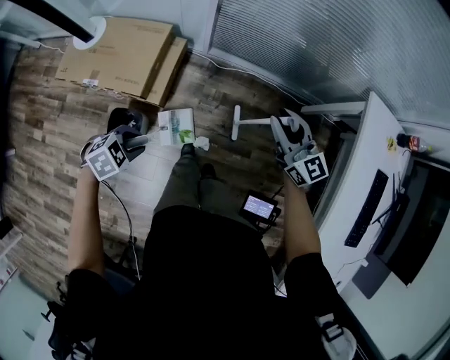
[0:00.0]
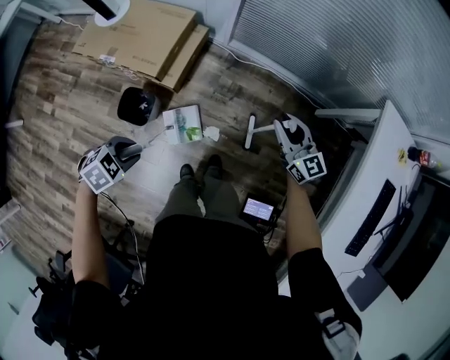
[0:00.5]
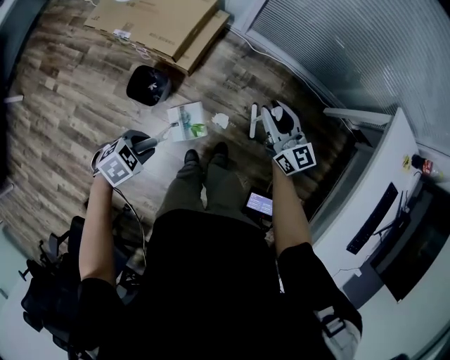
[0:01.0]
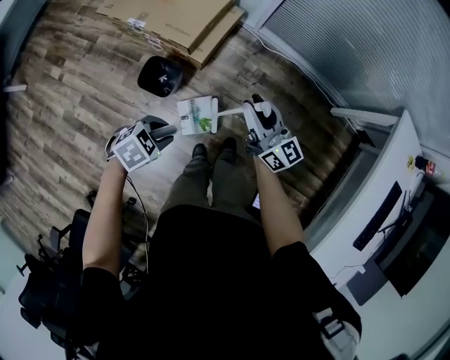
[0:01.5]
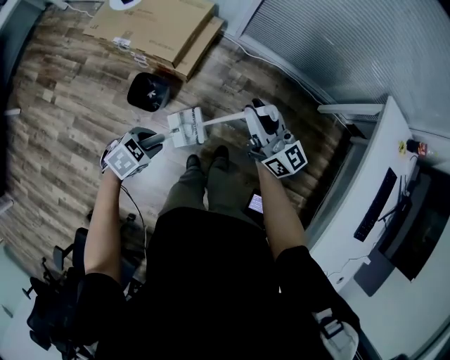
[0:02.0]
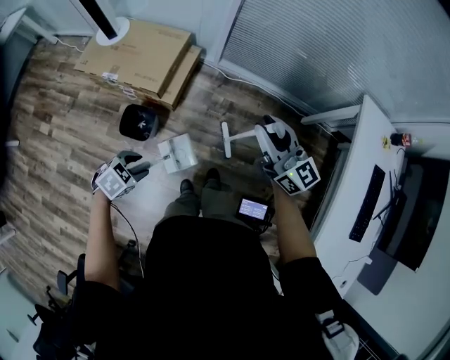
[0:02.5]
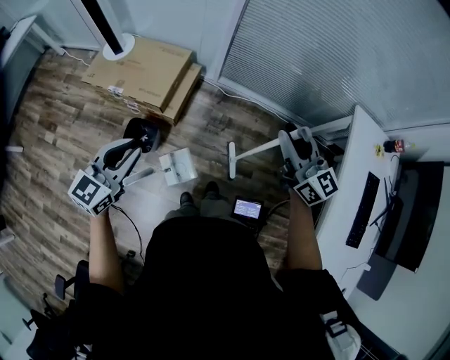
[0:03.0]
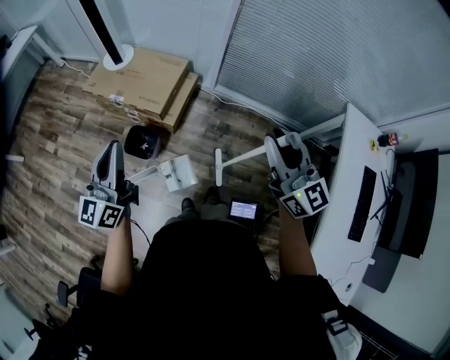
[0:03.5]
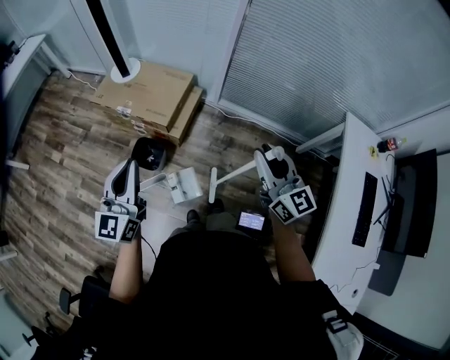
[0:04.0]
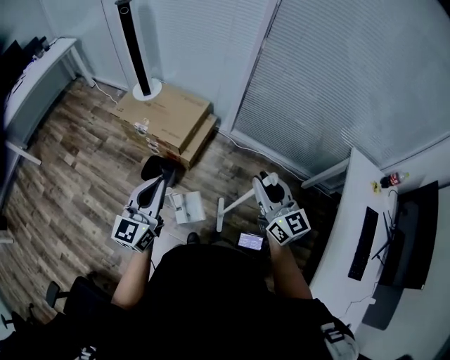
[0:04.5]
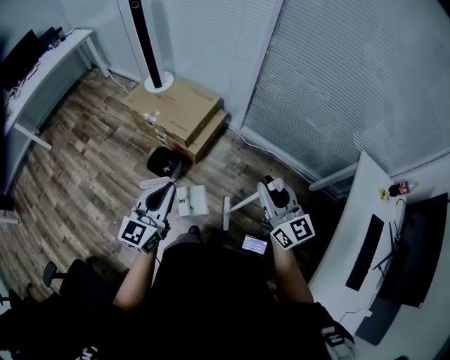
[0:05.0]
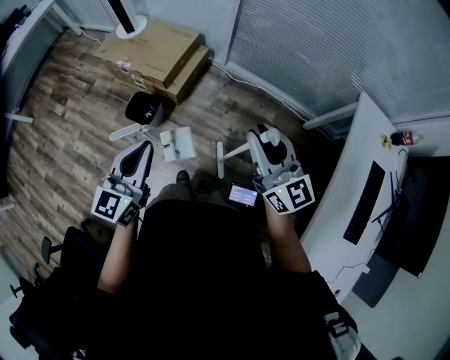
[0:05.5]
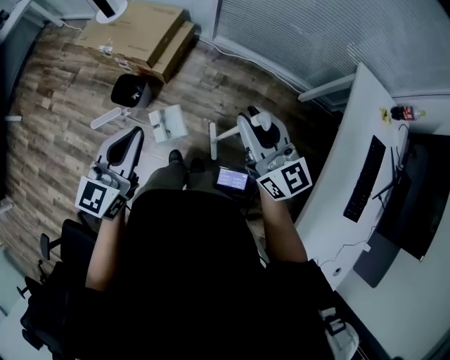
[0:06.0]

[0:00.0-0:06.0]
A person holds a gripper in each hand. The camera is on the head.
0:00.0 to 0:02.0: The left gripper heads backward, covering roughly 20 cm, and changes its angle by some 20 degrees, while the right gripper is displaced backward and to the left by some 25 cm, and rotates roughly 20 degrees.
0:02.0 to 0:04.0: The right gripper shifts some 15 cm upward, and changes its angle by some 20 degrees. Meanwhile the left gripper goes about 35 cm upward, angles its fingers upward, by roughly 70 degrees, and closes.
0:04.0 to 0:06.0: The left gripper travels to the right and backward by some 20 cm, and rotates roughly 20 degrees, while the right gripper moves to the right, backward and downward, some 10 cm.

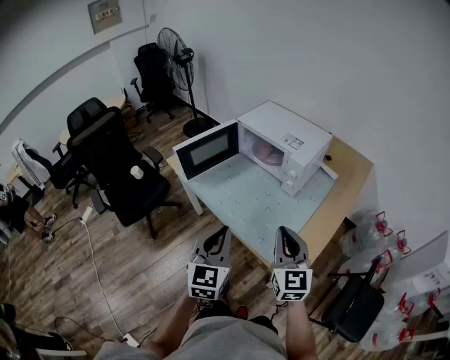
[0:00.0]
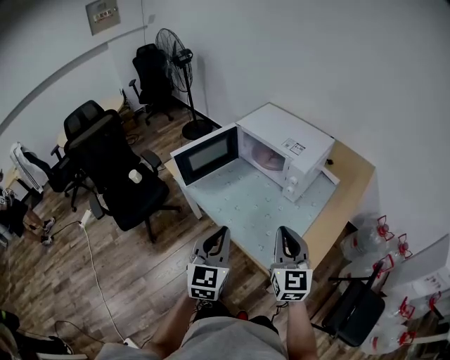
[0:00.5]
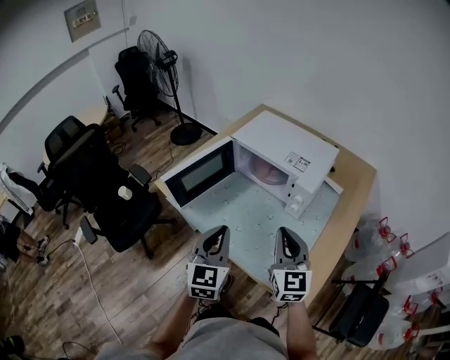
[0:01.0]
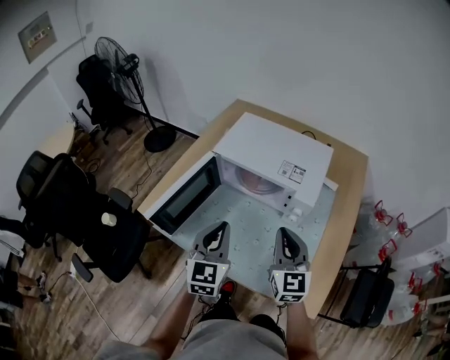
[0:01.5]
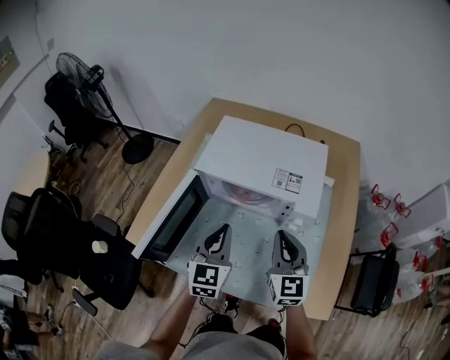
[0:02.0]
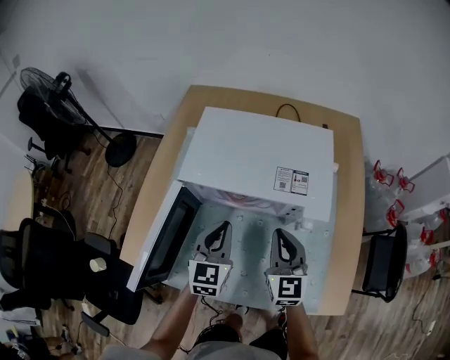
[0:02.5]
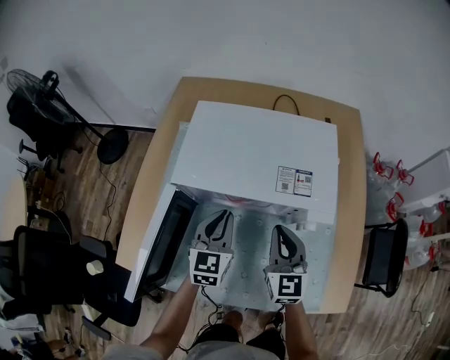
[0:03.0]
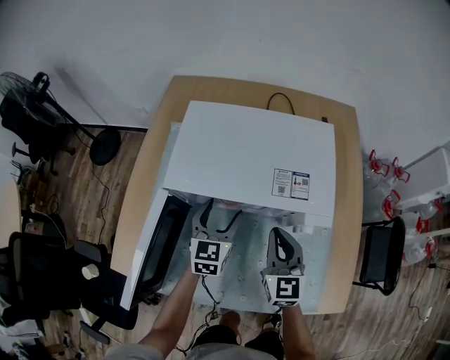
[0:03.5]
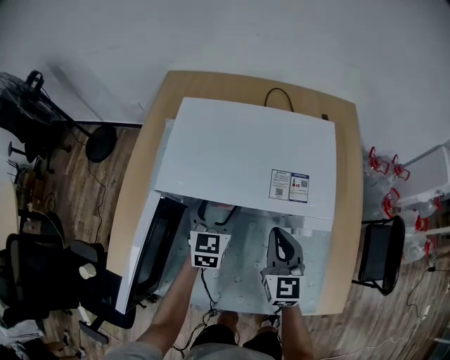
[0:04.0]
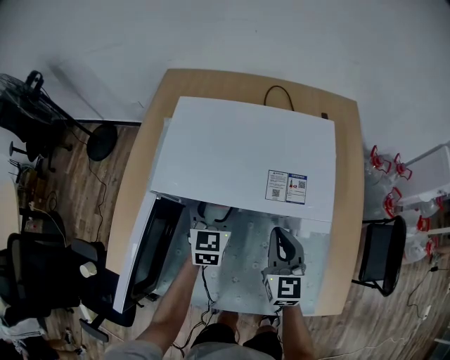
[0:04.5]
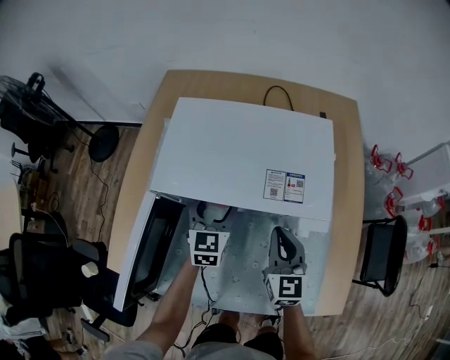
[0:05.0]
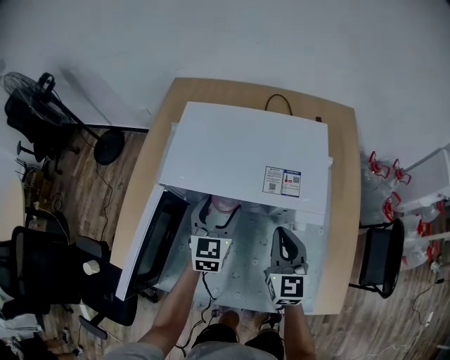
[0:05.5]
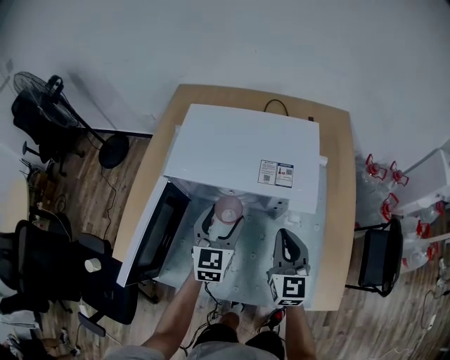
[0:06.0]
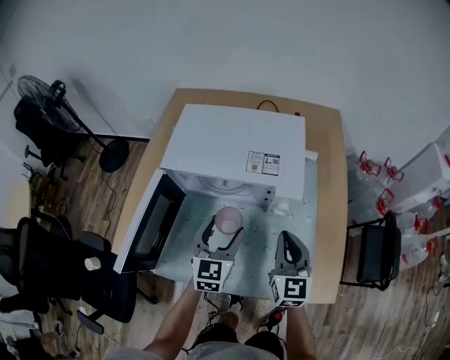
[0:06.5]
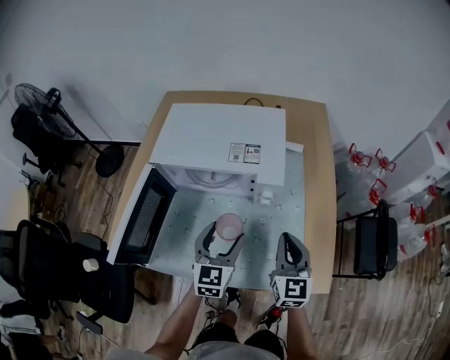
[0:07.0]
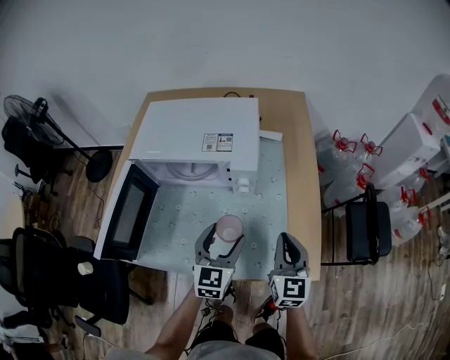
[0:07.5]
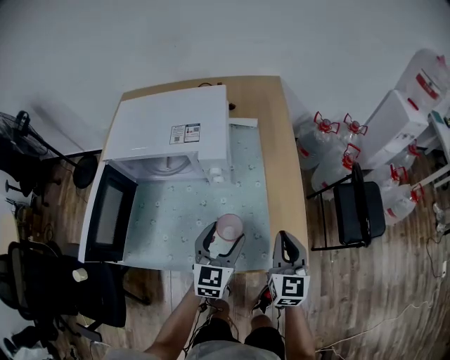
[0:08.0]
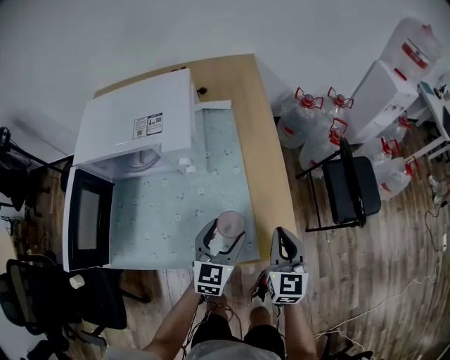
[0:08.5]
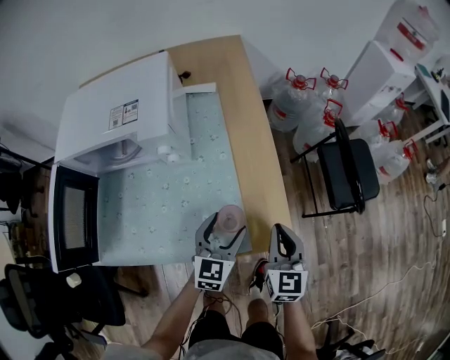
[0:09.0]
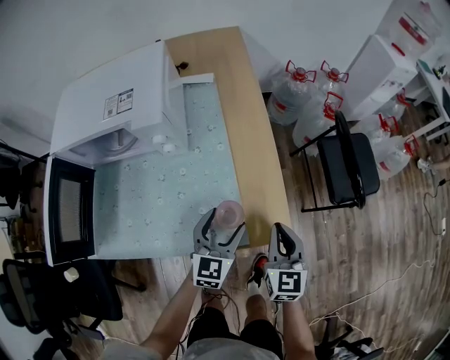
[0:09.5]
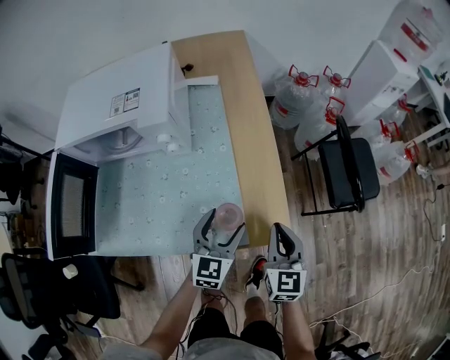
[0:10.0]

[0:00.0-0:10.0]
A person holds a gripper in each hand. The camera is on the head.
0:00.0 to 0:02.0: The right gripper shifts by some 30 cm, and changes its angle by approximately 30 degrees. The left gripper shifts by approximately 40 cm, and turns by some 30 degrees.
0:02.0 to 0:04.0: The right gripper travels downward and forward by some 15 cm; the left gripper goes about 25 cm forward and downward, and opens.
0:04.0 to 0:06.0: The left gripper heads backward and upward, covering roughly 10 cm, while the right gripper shifts by roughly 10 cm.
0:06.0 to 0:08.0: The two grippers go roughly 25 cm to the right and backward.
0:08.0 to 0:10.0: The grippers both shift to the right and downward by about 15 cm.

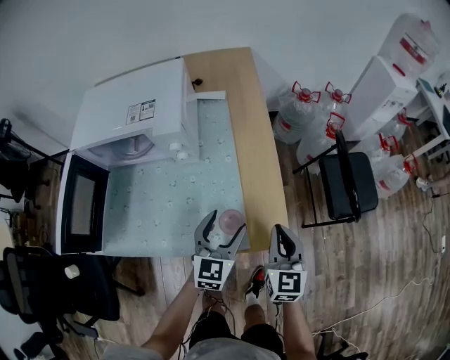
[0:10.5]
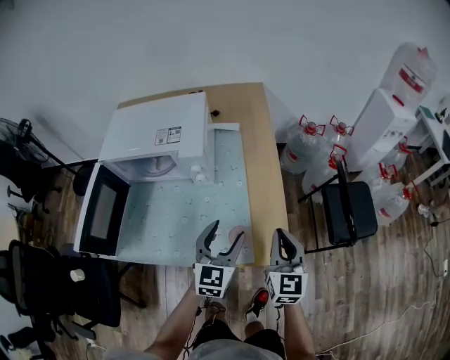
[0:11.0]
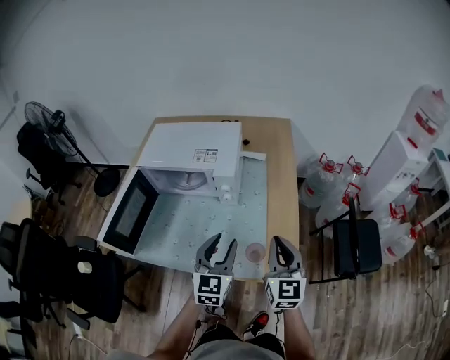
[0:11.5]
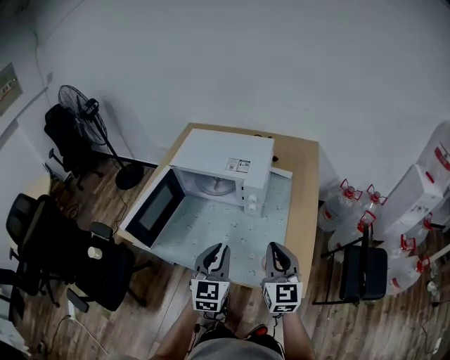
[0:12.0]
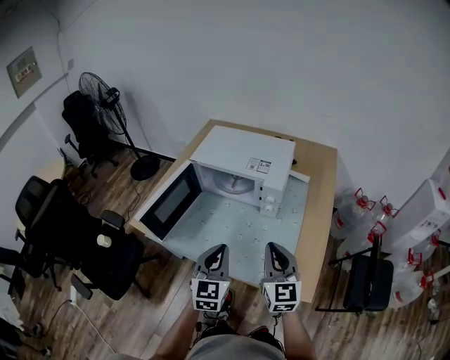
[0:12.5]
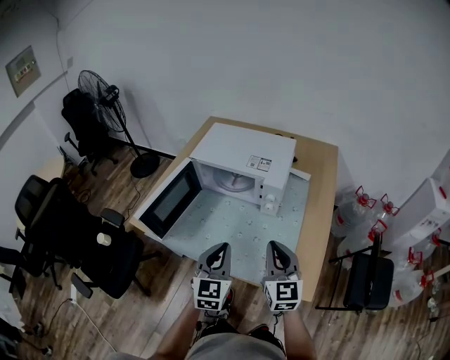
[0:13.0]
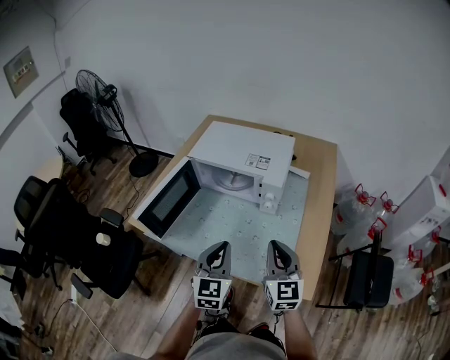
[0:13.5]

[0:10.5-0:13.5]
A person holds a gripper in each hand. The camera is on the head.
0:10.5 to 0:12.0: The right gripper moves upward, roughly 15 cm, and rotates about 30 degrees. Meanwhile the left gripper changes place by roughly 25 cm, turns by about 30 degrees, and closes.
0:12.0 to 0:13.5: The grippers make only small movements.

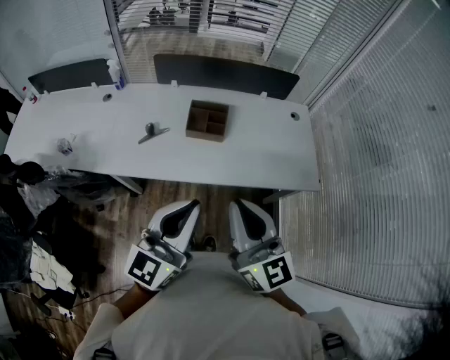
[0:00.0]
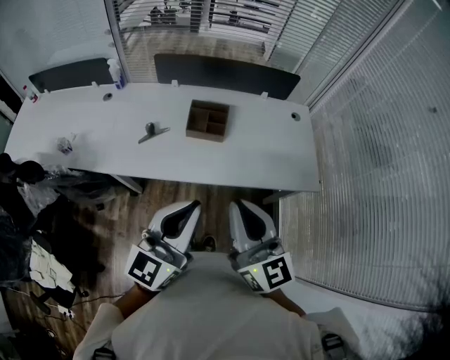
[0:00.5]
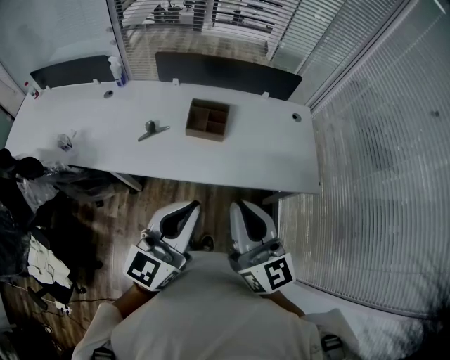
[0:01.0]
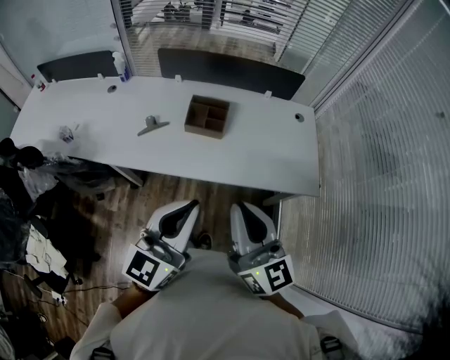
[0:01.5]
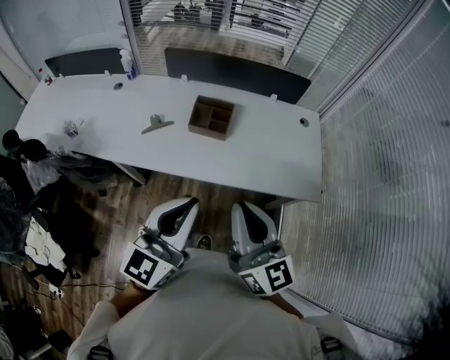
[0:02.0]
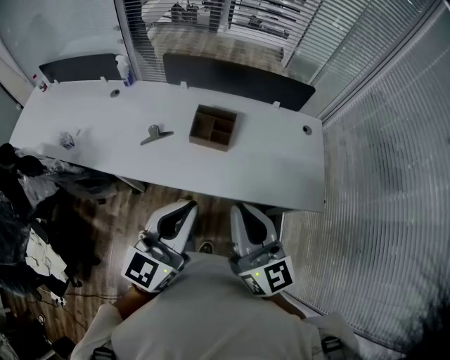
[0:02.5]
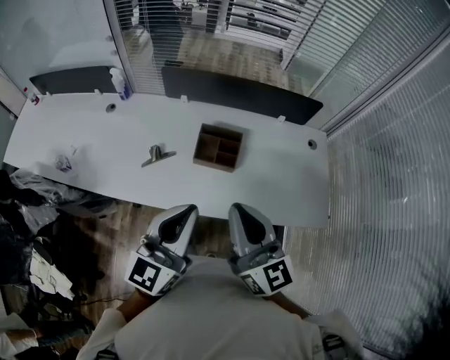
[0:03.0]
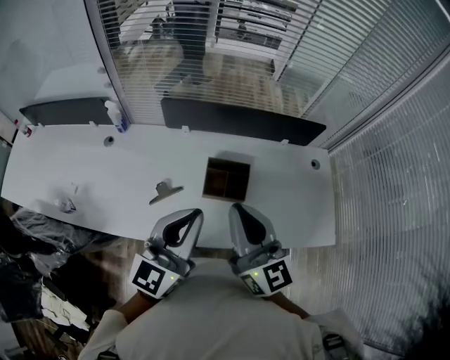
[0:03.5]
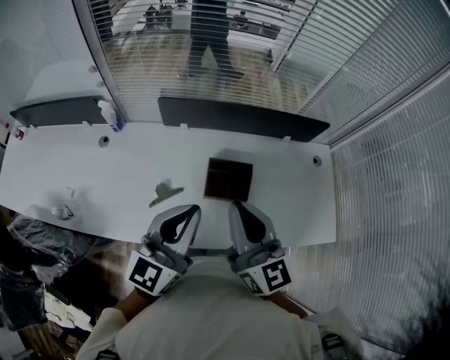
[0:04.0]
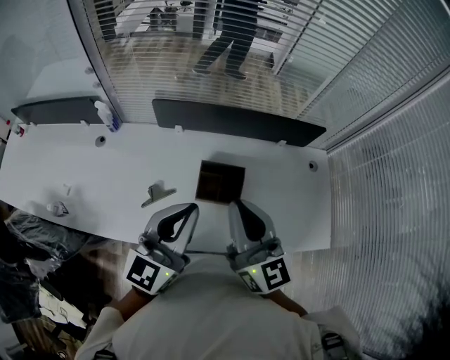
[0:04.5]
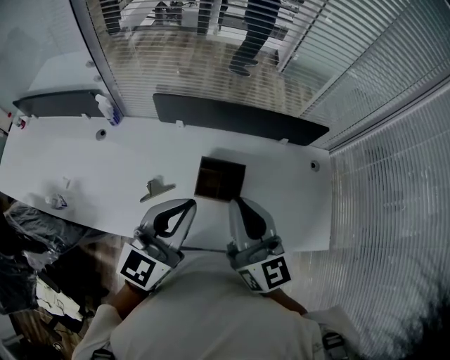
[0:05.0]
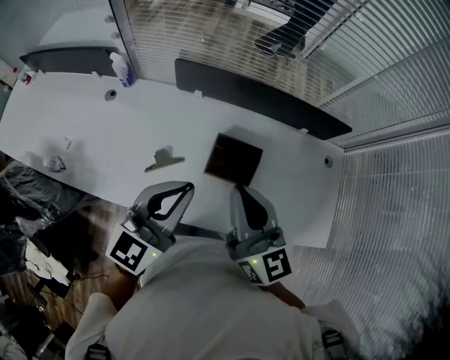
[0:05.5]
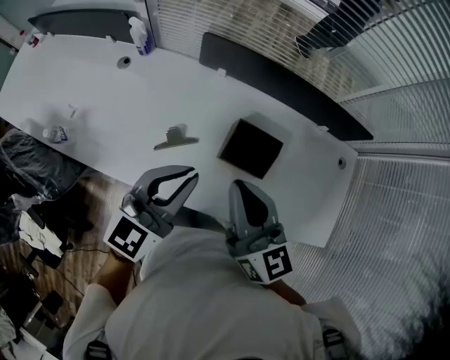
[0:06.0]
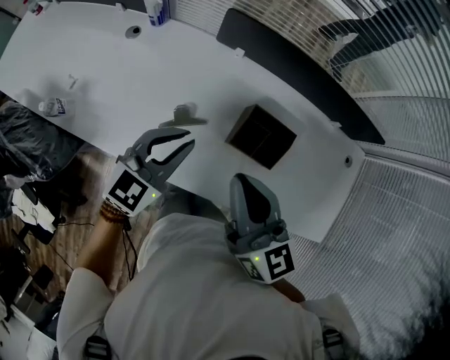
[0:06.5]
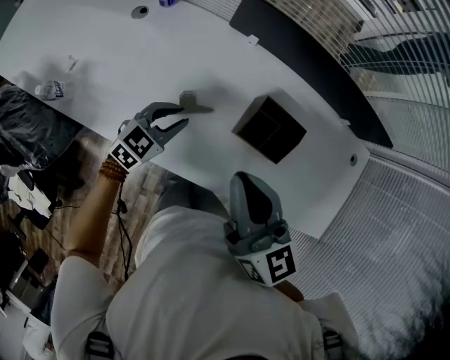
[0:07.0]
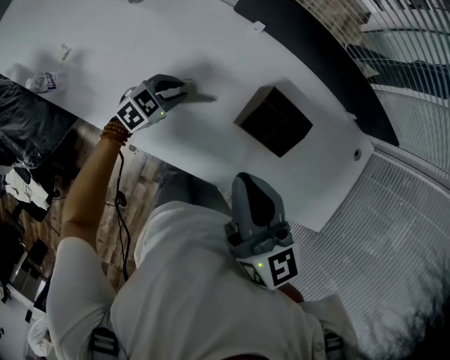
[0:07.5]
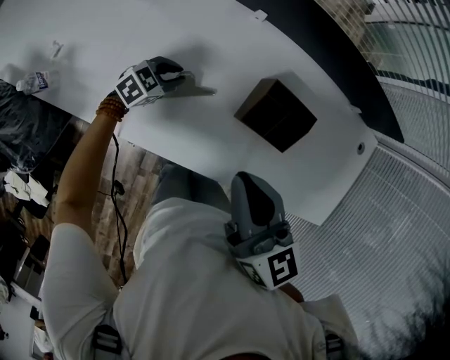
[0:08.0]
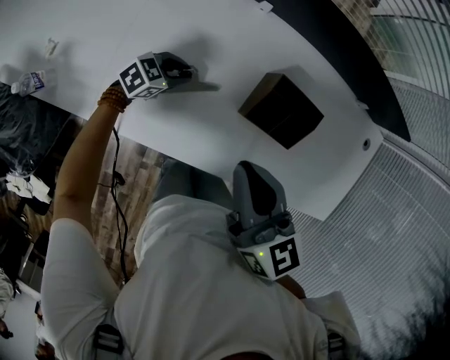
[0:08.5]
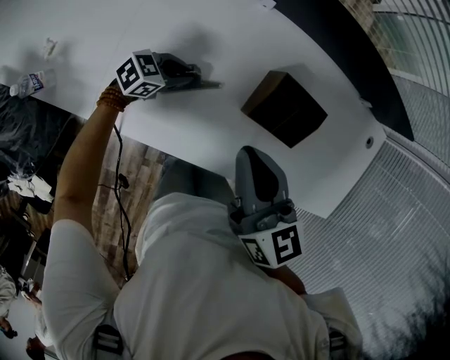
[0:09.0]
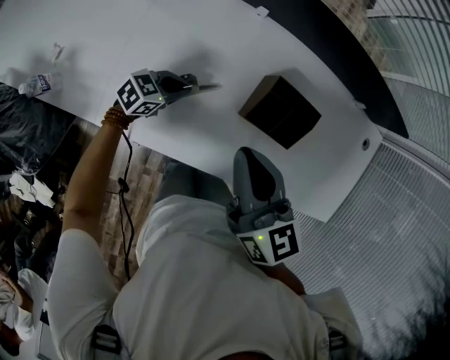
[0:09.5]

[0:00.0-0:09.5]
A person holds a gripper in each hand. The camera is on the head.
0:00.0 to 0:02.0: The two grippers go roughly 5 cm to the right.
0:02.0 to 0:04.0: The two grippers go about 35 cm forward and to the left.
0:04.0 to 0:05.5: There are only small adjustments of the grippers.
0:05.5 to 0:07.5: The right gripper moves to the left and downward, about 15 cm, and rotates roughly 20 degrees; the left gripper heads downward, covering about 35 cm, points its fingers some 40 degrees further downward, and opens.
0:07.5 to 0:09.5: The left gripper changes its angle by approximately 20 degrees, and closes its fingers. The right gripper shifts by about 5 cm.
